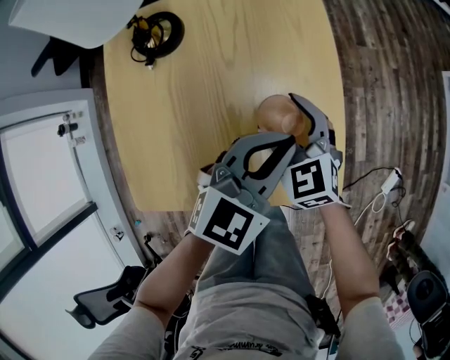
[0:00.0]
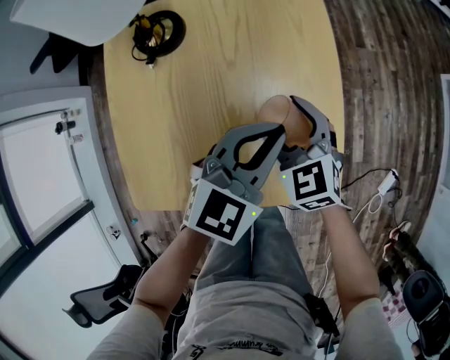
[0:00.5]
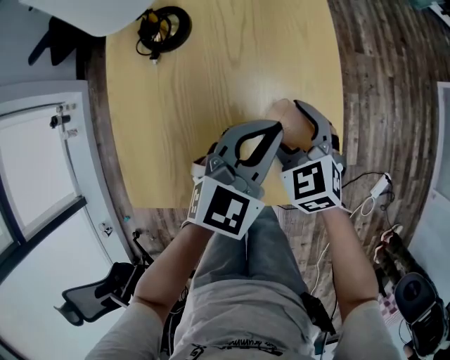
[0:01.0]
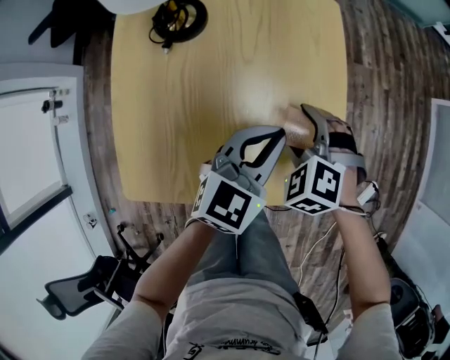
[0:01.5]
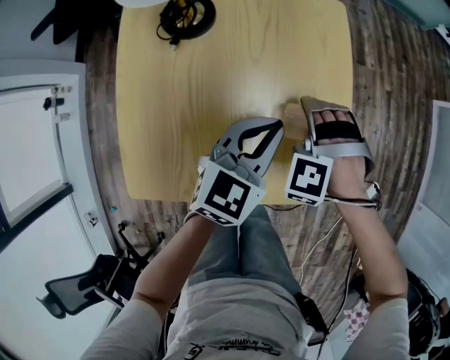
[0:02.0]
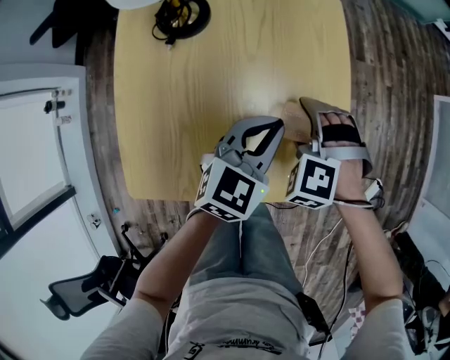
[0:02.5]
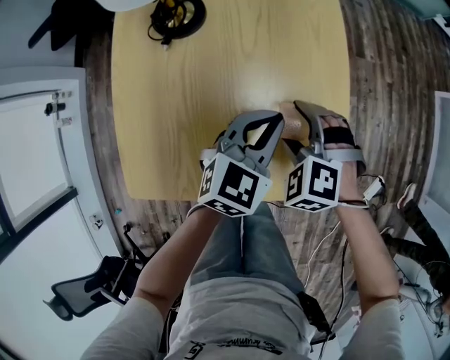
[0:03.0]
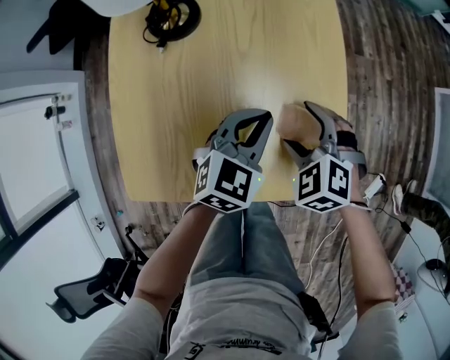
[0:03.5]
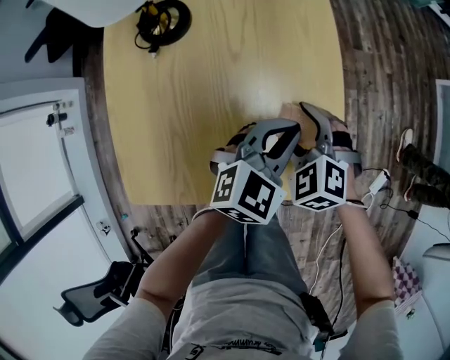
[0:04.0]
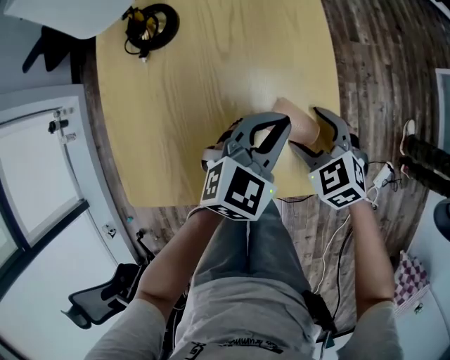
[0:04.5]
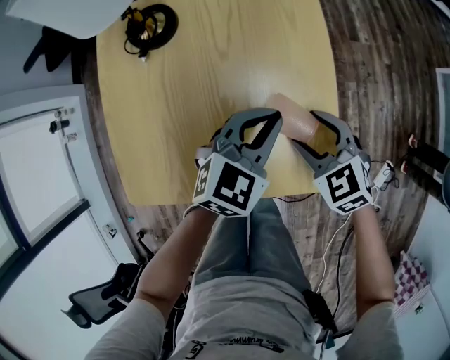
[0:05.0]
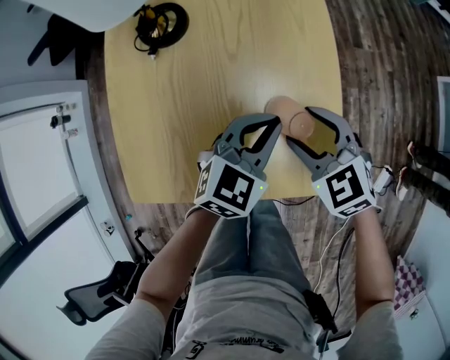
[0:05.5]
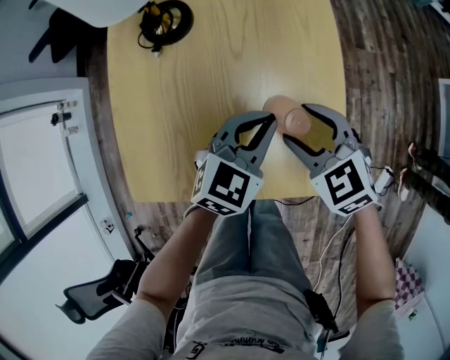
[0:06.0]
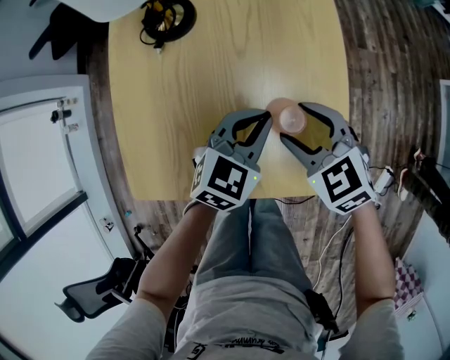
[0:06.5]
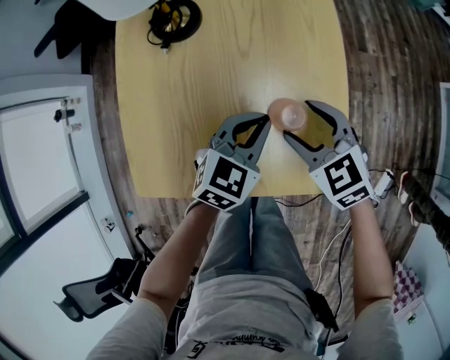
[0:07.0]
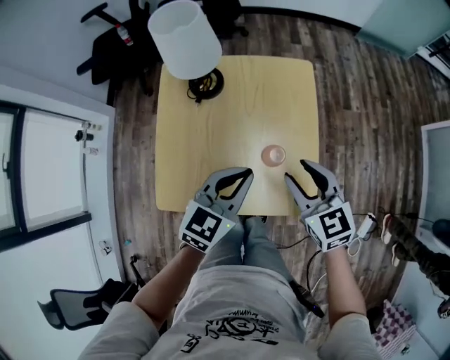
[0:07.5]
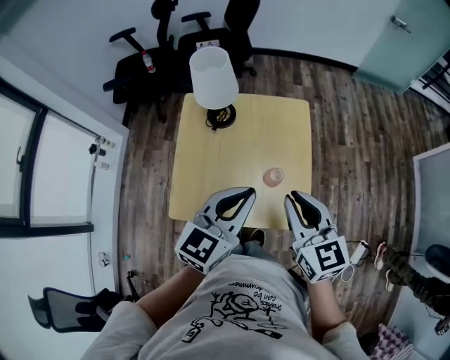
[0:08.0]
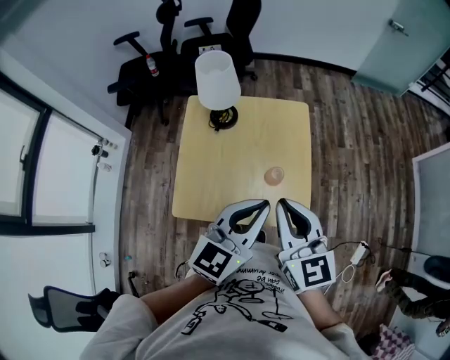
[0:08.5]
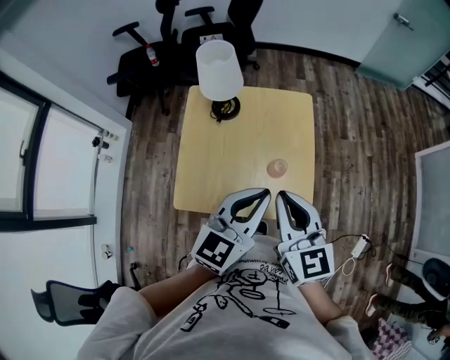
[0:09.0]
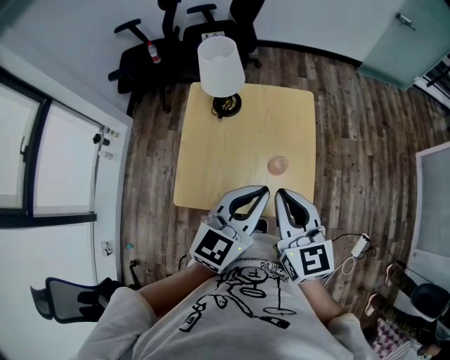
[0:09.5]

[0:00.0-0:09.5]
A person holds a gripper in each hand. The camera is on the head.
0:00.0 to 0:02.0: The right gripper rolls counterclockwise, seen from behind, by some 60 degrees. Meanwhile the left gripper travels to the left by roughly 5 cm.
0:02.0 to 0:04.0: The right gripper changes its angle by approximately 40 degrees. The left gripper heads to the right, covering some 5 cm.
0:04.0 to 0:05.5: The right gripper travels upward by roughly 5 cm, and swivels about 20 degrees.
0:05.5 to 0:07.5: The left gripper shifts about 15 cm upward and to the left, while the right gripper goes about 15 cm upward, and turns by approximately 20 degrees.
0:07.5 to 0:09.5: The left gripper moves upward and backward, approximately 15 cm. The right gripper goes about 20 cm upward, backward and to the left, and closes up.

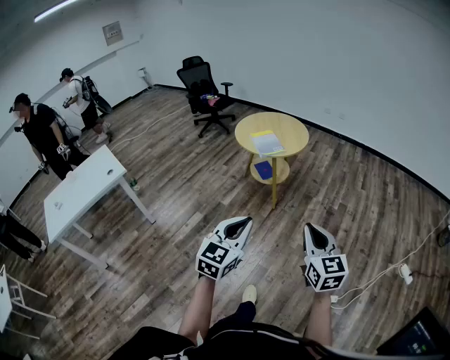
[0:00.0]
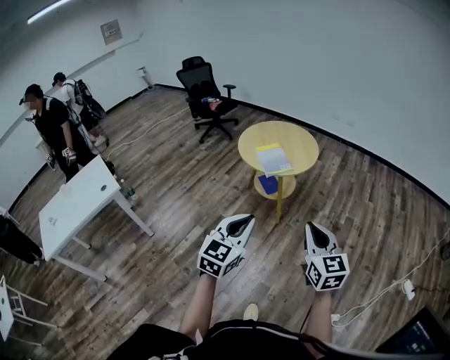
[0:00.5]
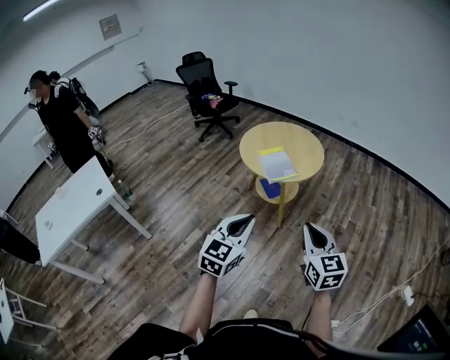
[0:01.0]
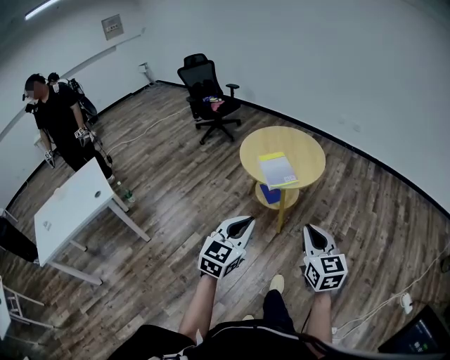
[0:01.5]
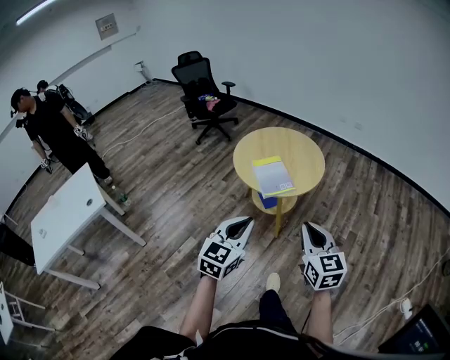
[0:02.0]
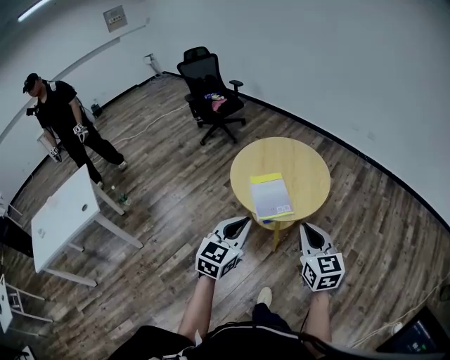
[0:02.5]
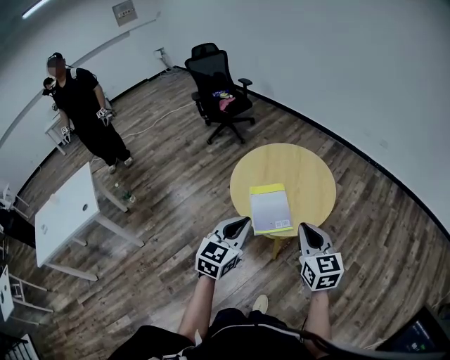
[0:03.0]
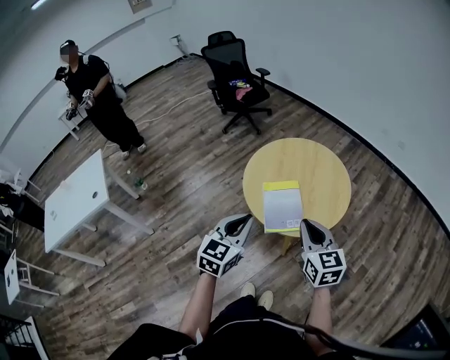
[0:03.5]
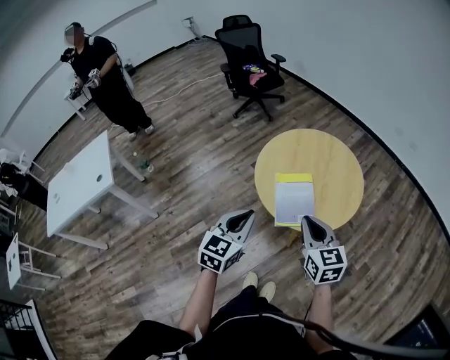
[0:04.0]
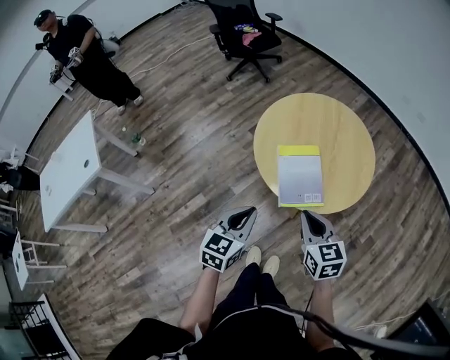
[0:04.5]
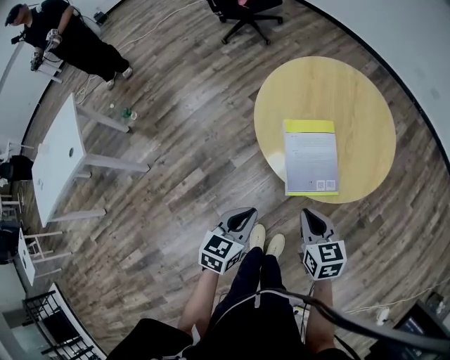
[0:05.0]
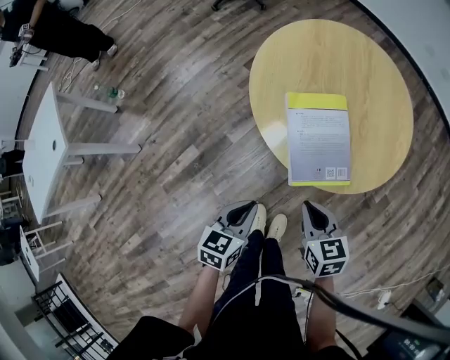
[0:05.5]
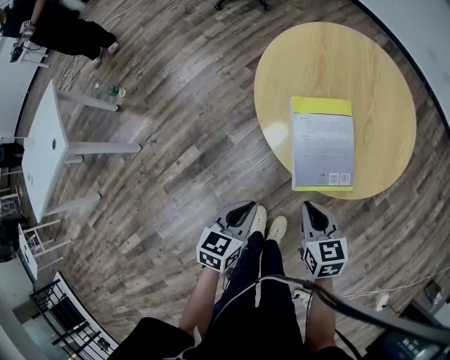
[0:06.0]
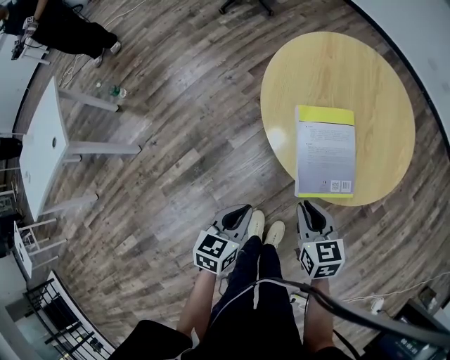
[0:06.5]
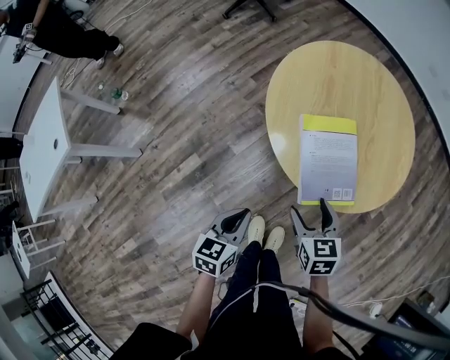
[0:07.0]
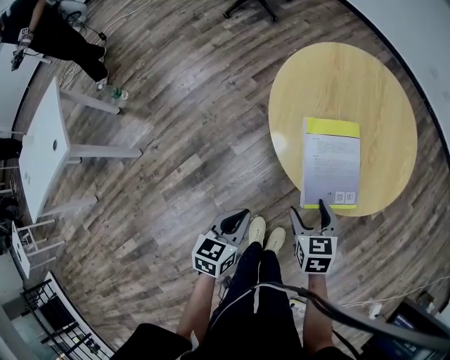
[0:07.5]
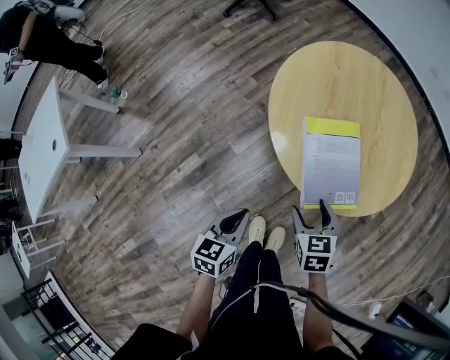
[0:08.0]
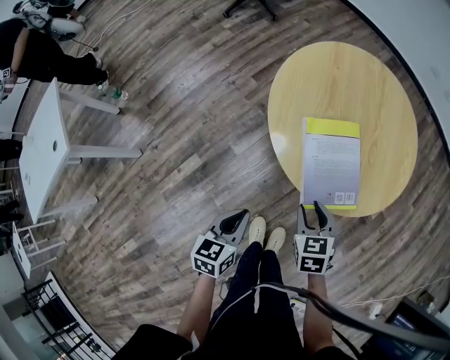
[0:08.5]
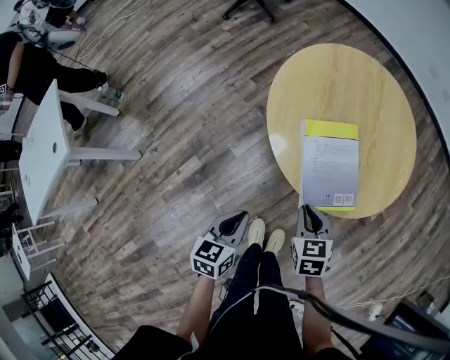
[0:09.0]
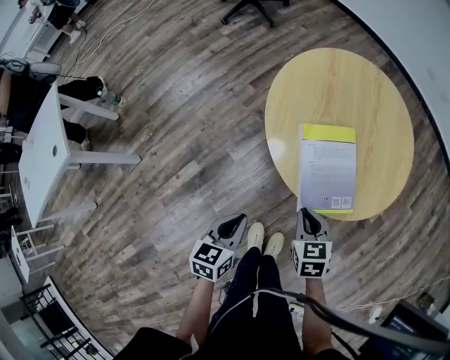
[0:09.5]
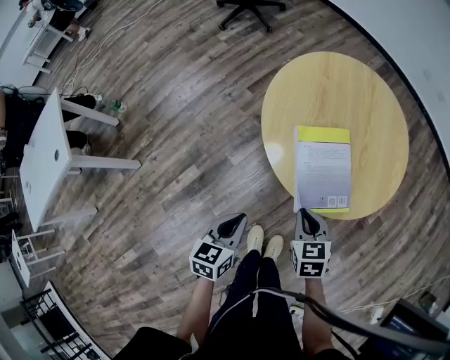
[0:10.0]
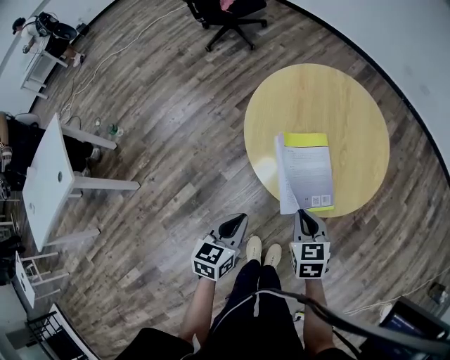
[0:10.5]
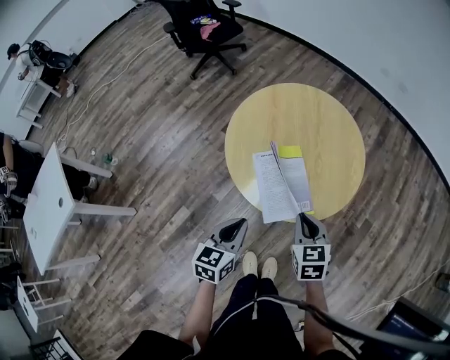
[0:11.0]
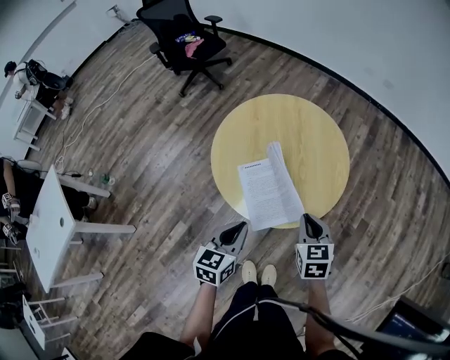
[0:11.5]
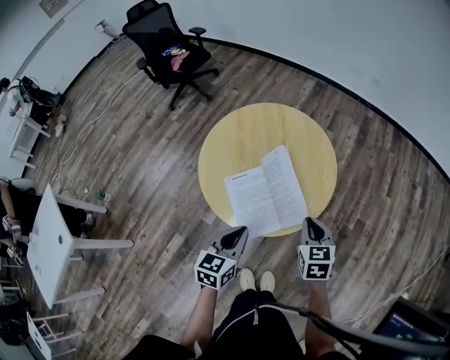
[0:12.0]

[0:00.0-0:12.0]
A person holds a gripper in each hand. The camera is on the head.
0:00.0 to 0:02.0: The grippers both shift forward by approximately 35 cm.
0:02.0 to 0:04.0: Both grippers travel together forward, some 25 cm. The right gripper changes its angle by some 20 degrees.
0:04.0 to 0:06.0: The grippers both shift downward by roughly 25 cm. The left gripper changes its angle by roughly 30 degrees. The right gripper changes its angle by some 30 degrees.
0:06.0 to 0:08.0: The left gripper travels to the left by about 5 cm; the right gripper changes place by roughly 5 cm, and opens.
0:08.0 to 0:10.0: The right gripper closes.
0:10.0 to 0:12.0: The left gripper moves to the right, upward and forward, roughly 20 cm, and rotates about 20 degrees, while the right gripper goes some 20 cm to the right and upward, and turns by approximately 20 degrees.

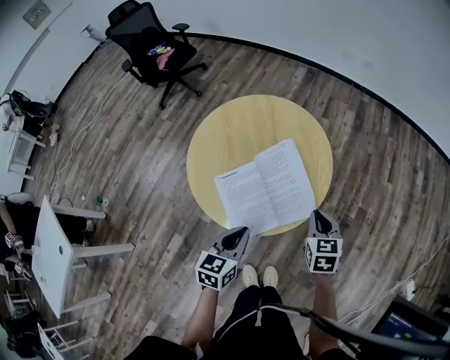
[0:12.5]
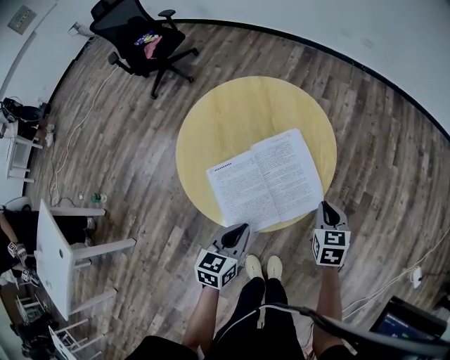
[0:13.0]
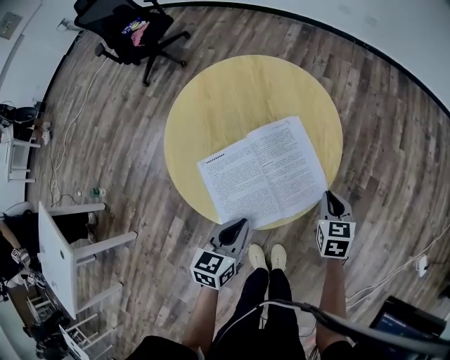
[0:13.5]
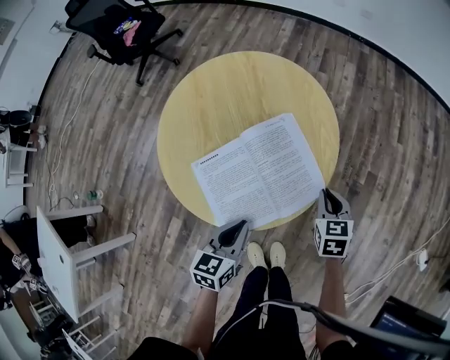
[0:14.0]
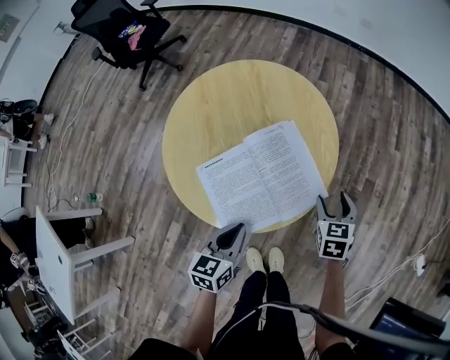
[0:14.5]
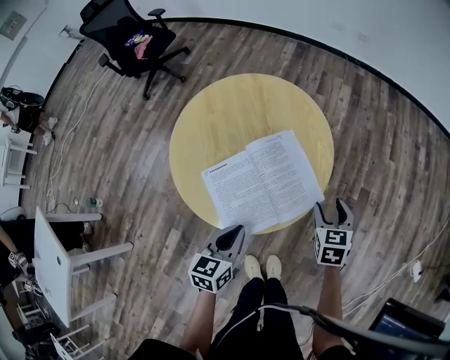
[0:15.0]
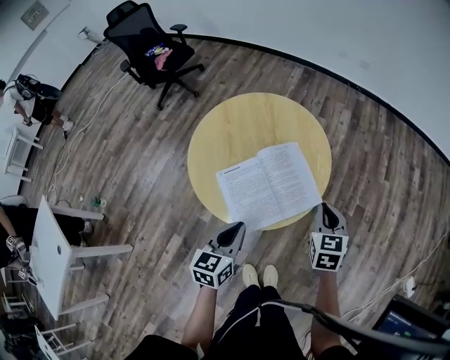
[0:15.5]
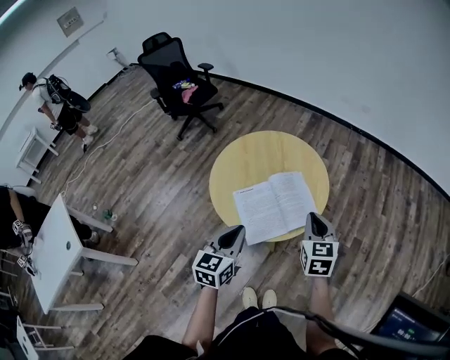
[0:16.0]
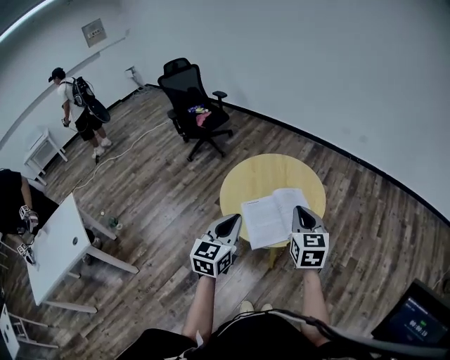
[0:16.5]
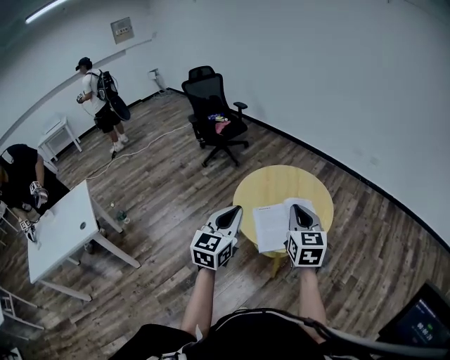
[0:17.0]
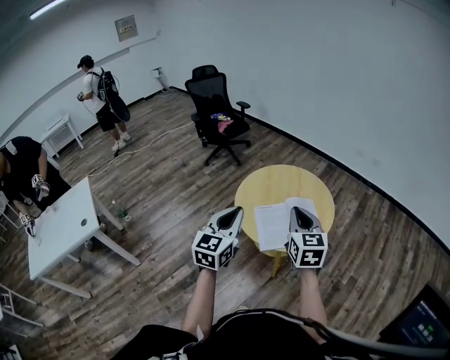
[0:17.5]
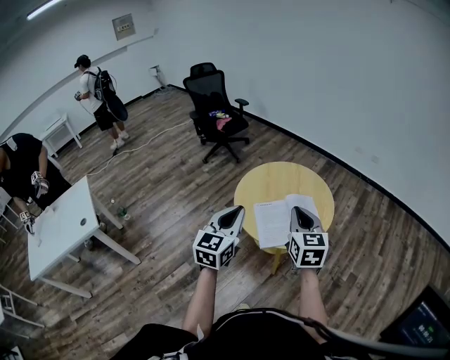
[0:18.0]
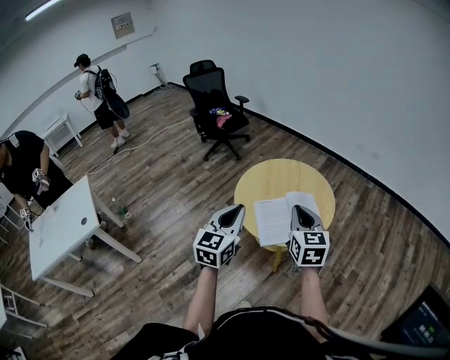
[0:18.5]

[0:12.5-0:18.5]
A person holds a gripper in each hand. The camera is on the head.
0:12.5 to 0:14.5: The left gripper is displaced downward by approximately 5 cm. Meanwhile the right gripper travels downward and to the right by roughly 10 cm, and opens.
0:14.5 to 0:16.5: The right gripper shifts some 35 cm upward and to the left, tips its fingers upward by roughly 30 degrees, and closes up; the left gripper moves upward, approximately 30 cm, and turns by some 30 degrees.
0:16.5 to 0:18.5: The left gripper changes place by some 5 cm; the right gripper goes approximately 5 cm to the left.
